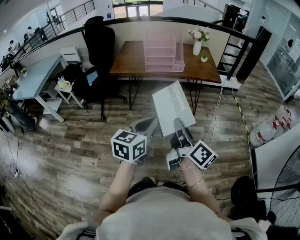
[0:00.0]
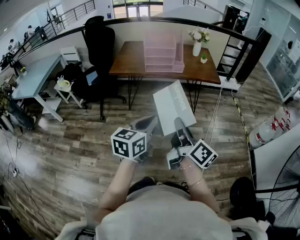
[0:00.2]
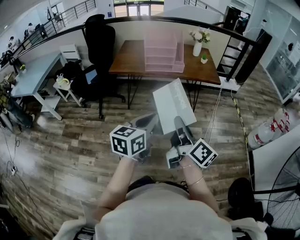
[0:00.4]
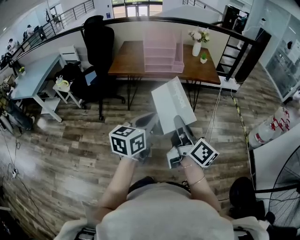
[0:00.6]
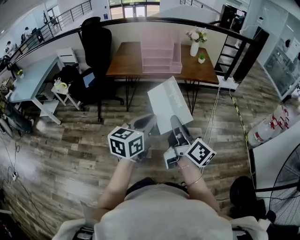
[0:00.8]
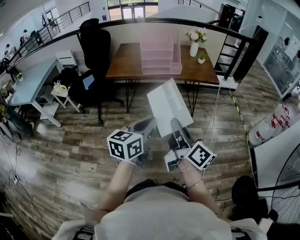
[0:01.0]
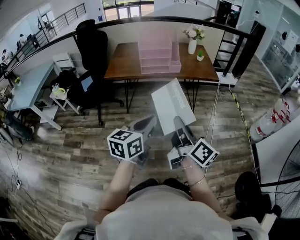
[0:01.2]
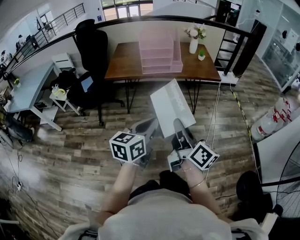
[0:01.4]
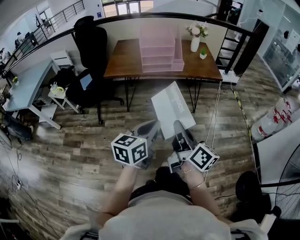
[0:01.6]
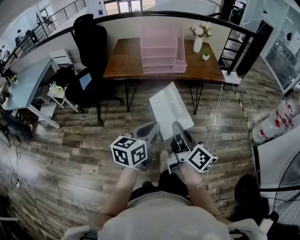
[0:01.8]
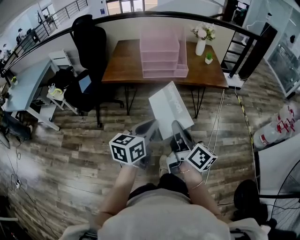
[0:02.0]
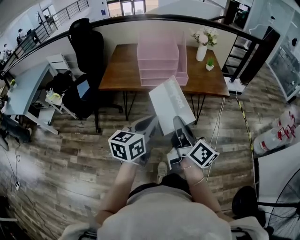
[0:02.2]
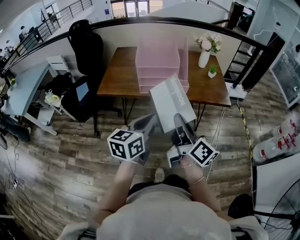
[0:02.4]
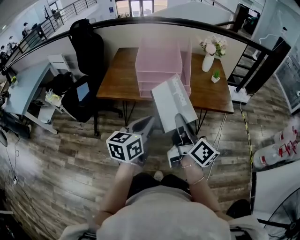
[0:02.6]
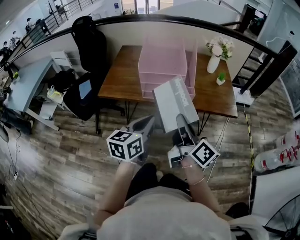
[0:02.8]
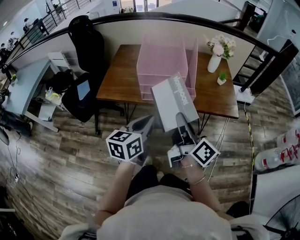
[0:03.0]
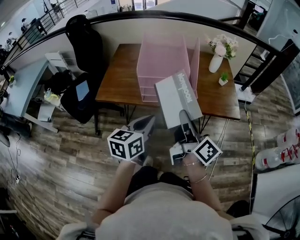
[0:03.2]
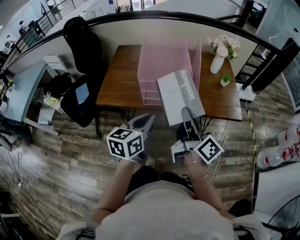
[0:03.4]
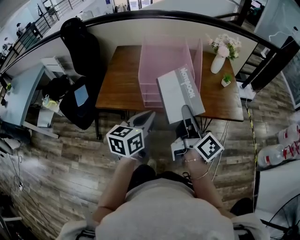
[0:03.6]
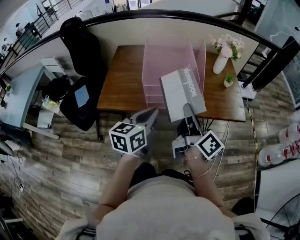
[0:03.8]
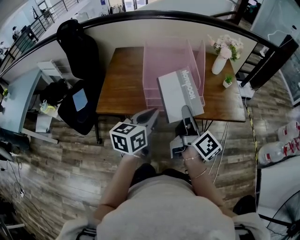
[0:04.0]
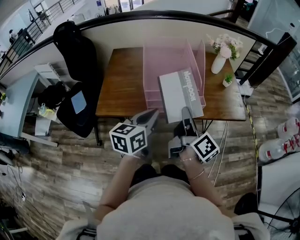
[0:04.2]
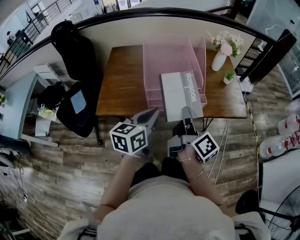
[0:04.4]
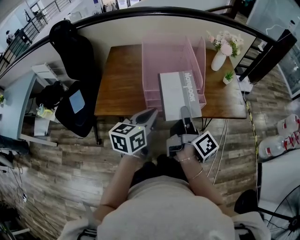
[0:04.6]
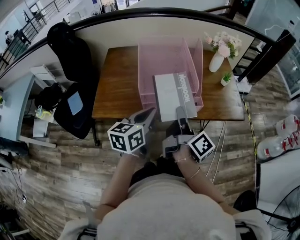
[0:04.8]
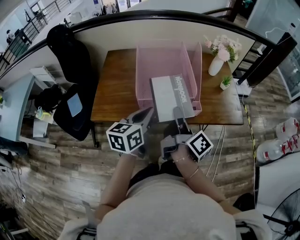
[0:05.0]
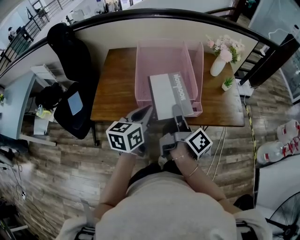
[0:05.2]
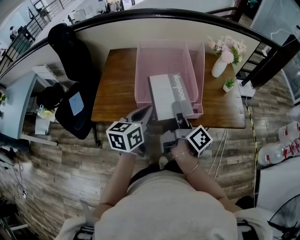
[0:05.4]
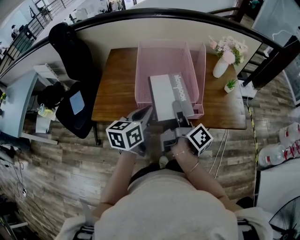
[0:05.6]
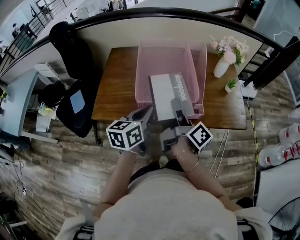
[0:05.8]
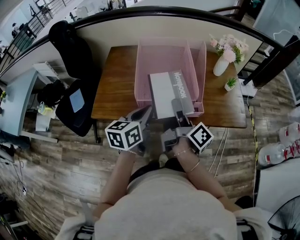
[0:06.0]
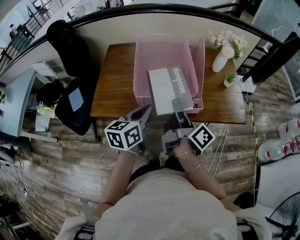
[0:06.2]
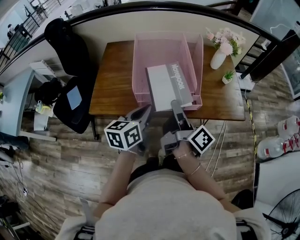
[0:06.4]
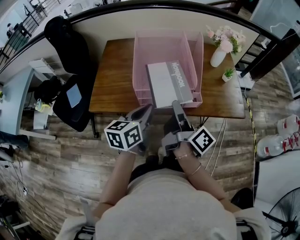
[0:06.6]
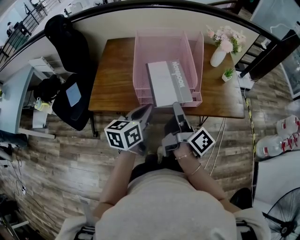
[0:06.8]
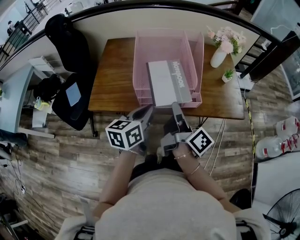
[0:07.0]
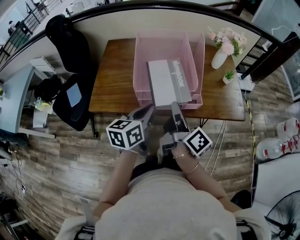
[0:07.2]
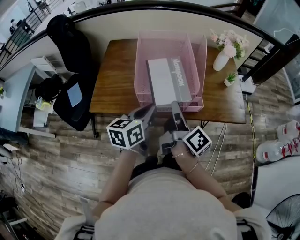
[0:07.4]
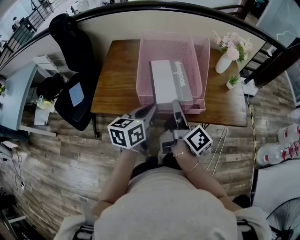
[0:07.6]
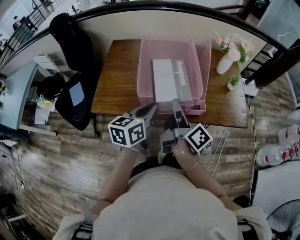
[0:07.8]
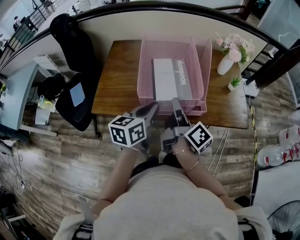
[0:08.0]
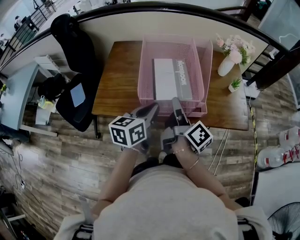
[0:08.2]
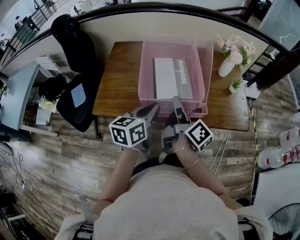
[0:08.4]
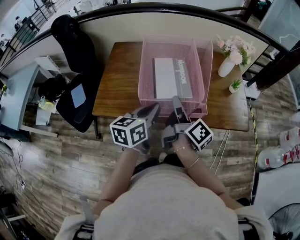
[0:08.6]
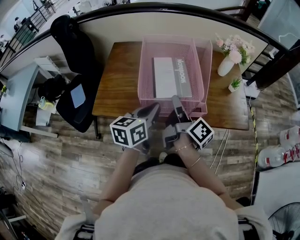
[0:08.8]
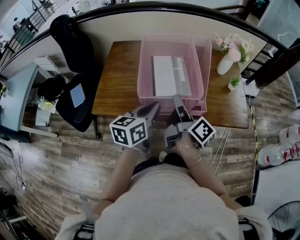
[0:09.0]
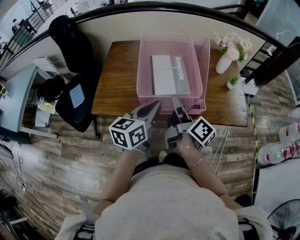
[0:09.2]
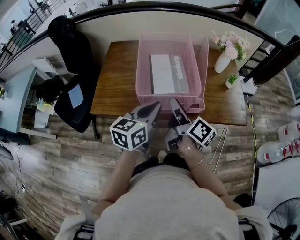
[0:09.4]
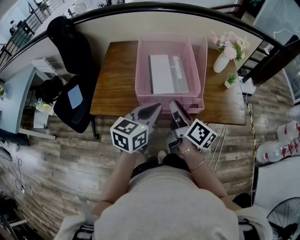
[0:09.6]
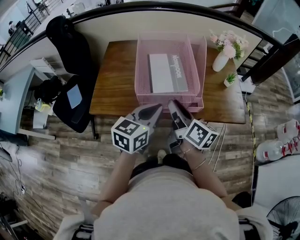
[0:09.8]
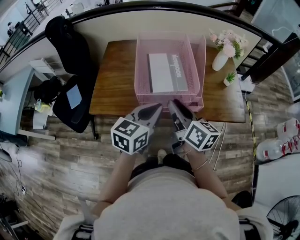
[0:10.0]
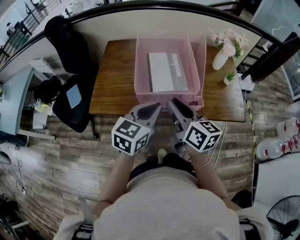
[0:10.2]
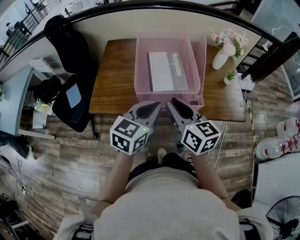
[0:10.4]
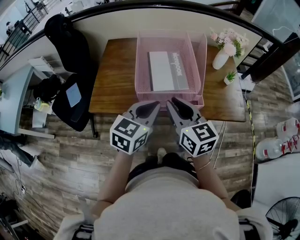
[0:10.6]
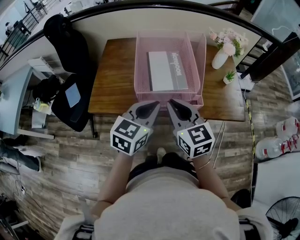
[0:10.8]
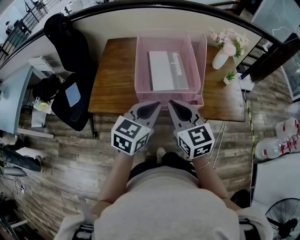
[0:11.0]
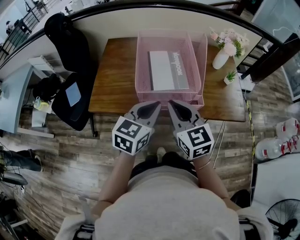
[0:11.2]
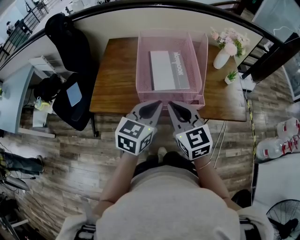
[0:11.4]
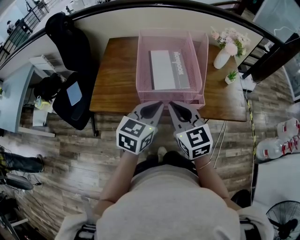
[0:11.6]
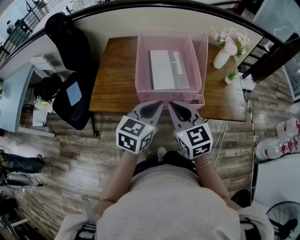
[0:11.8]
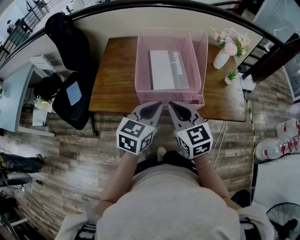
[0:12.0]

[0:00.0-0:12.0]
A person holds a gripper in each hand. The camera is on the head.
0:00.0 to 0:01.6: The left gripper moves some 5 cm, while the right gripper shifts by some 5 cm.
0:01.6 to 0:03.0: The two grippers go some 35 cm forward.
0:03.0 to 0:04.4: The two grippers go about 15 cm forward and to the left. The right gripper changes its angle by approximately 20 degrees.
0:04.4 to 0:06.0: The two grippers go roughly 5 cm forward. The right gripper opens up.
0:06.0 to 0:07.6: The right gripper closes.
0:07.6 to 0:09.0: The right gripper opens up.
0:09.0 to 0:10.4: The right gripper travels backward by about 5 cm, and rotates around the line of its fingers by approximately 50 degrees, counterclockwise from behind; the left gripper rotates roughly 20 degrees.
0:10.4 to 0:12.0: The right gripper swivels approximately 30 degrees.

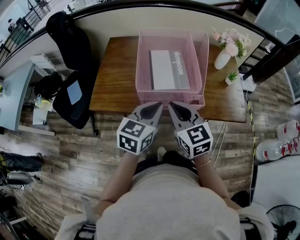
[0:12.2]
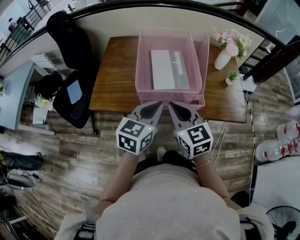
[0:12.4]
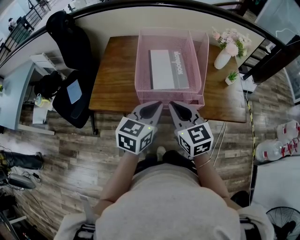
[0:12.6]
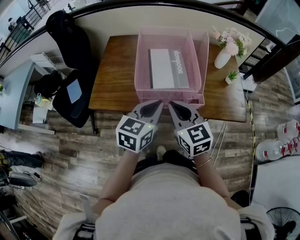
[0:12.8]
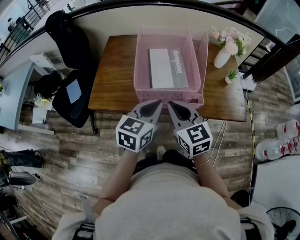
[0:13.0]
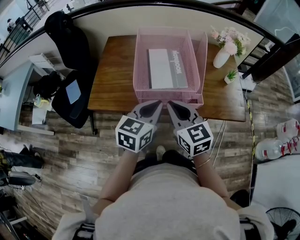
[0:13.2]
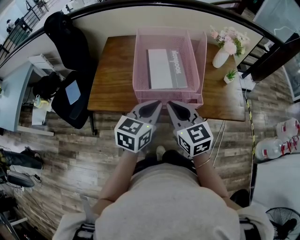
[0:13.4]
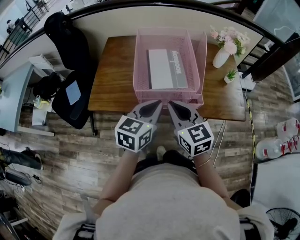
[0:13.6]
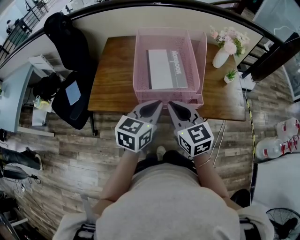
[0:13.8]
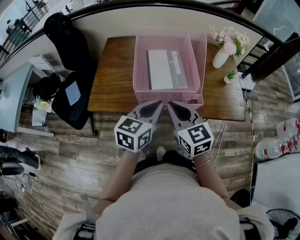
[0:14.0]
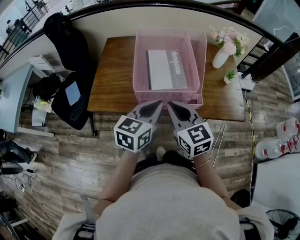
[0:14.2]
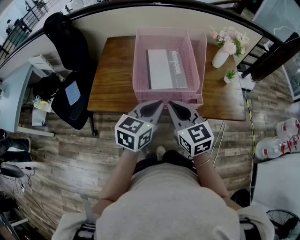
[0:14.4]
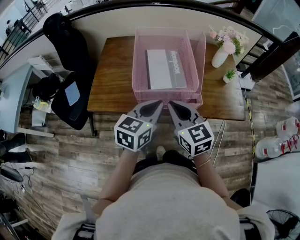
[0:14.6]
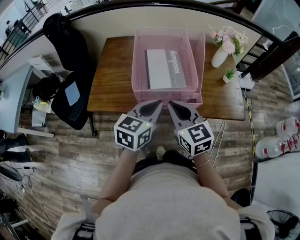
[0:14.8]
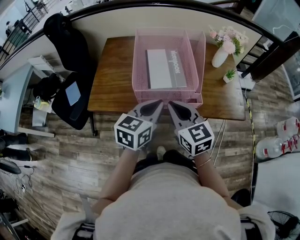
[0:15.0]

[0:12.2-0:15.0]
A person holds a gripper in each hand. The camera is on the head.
0:12.2 to 0:13.6: Both grippers stay about where they are.
0:13.6 to 0:15.0: The two grippers keep their place.

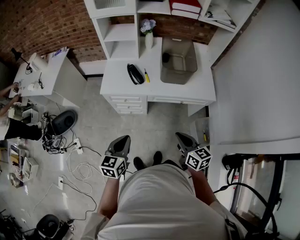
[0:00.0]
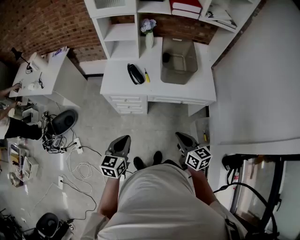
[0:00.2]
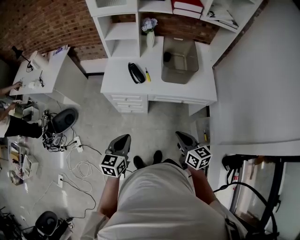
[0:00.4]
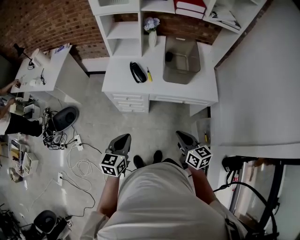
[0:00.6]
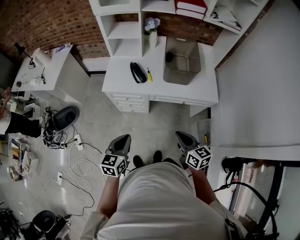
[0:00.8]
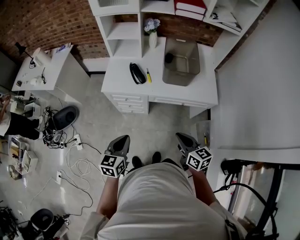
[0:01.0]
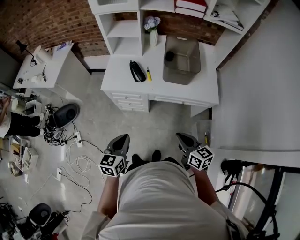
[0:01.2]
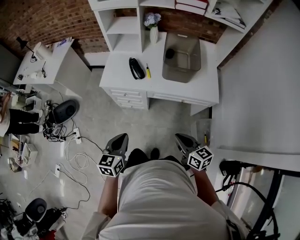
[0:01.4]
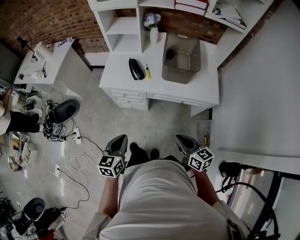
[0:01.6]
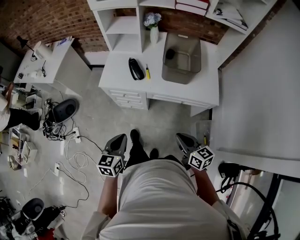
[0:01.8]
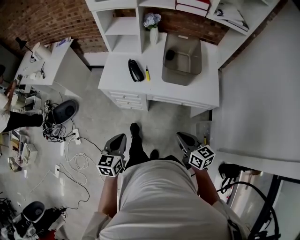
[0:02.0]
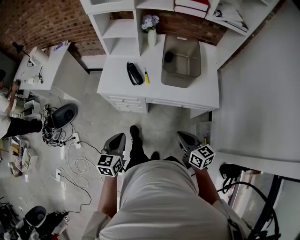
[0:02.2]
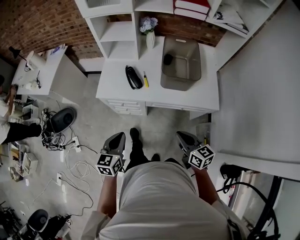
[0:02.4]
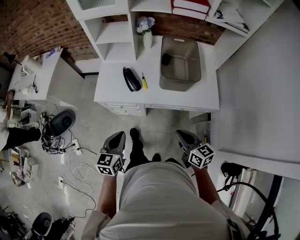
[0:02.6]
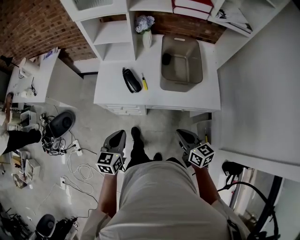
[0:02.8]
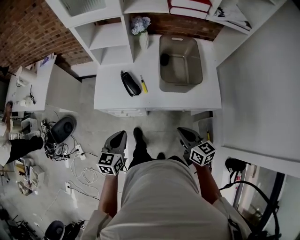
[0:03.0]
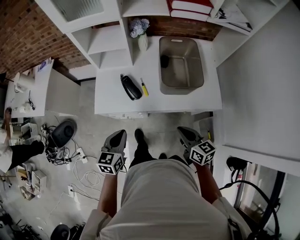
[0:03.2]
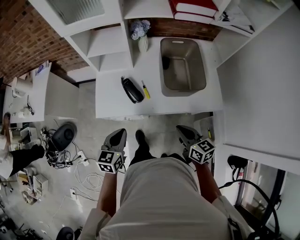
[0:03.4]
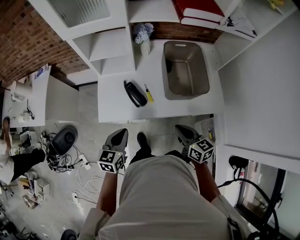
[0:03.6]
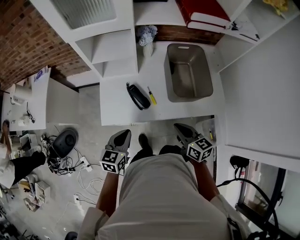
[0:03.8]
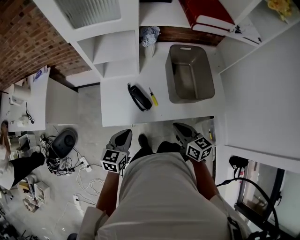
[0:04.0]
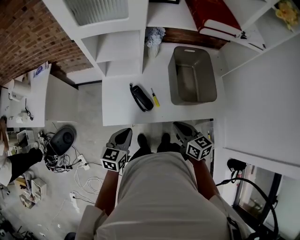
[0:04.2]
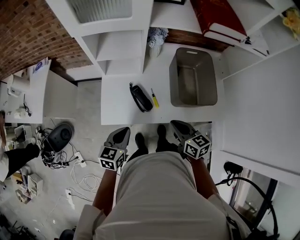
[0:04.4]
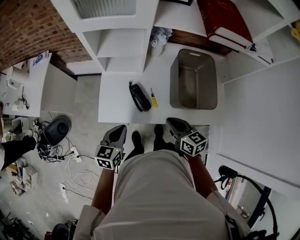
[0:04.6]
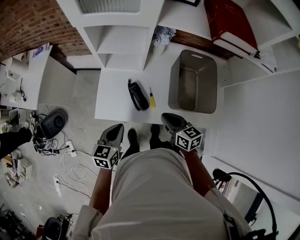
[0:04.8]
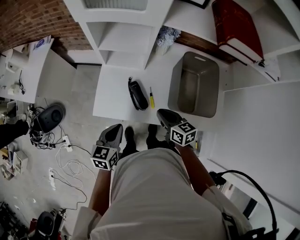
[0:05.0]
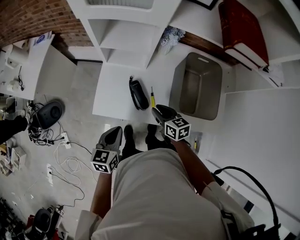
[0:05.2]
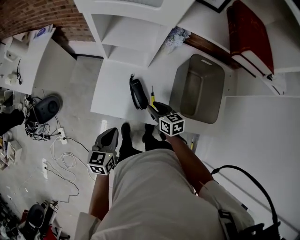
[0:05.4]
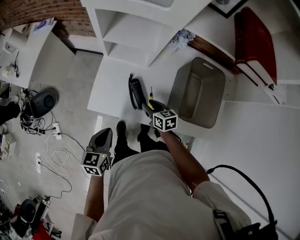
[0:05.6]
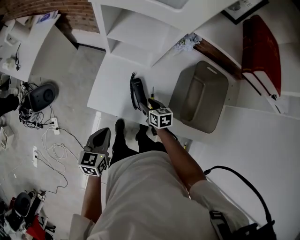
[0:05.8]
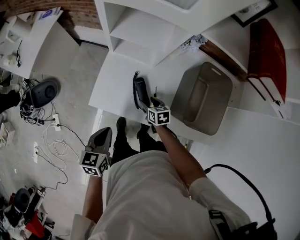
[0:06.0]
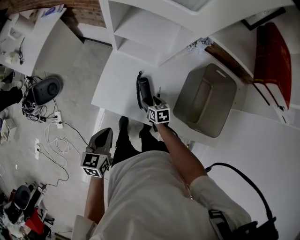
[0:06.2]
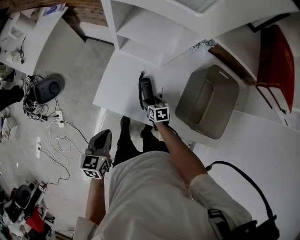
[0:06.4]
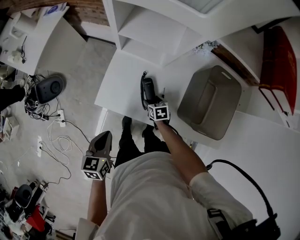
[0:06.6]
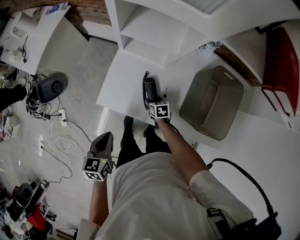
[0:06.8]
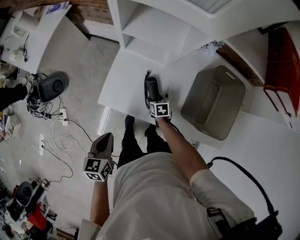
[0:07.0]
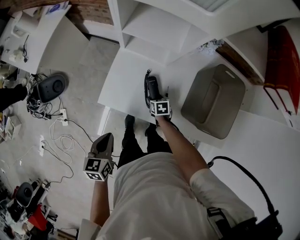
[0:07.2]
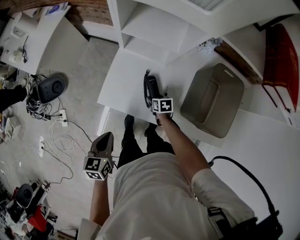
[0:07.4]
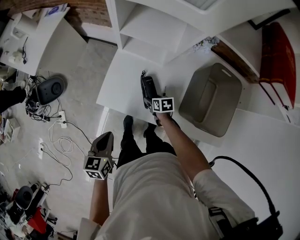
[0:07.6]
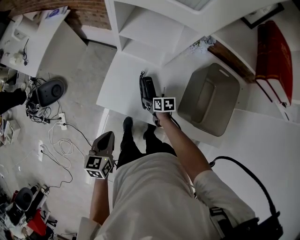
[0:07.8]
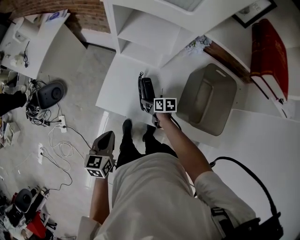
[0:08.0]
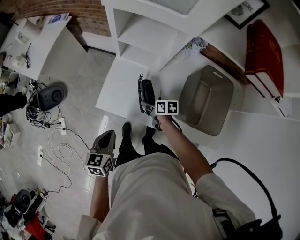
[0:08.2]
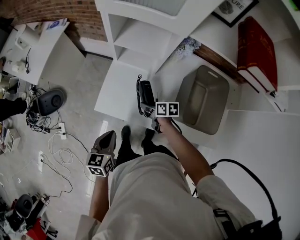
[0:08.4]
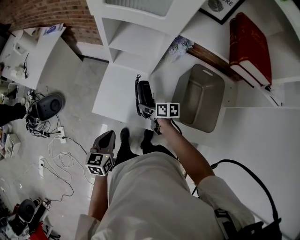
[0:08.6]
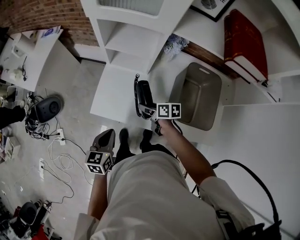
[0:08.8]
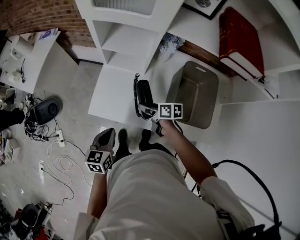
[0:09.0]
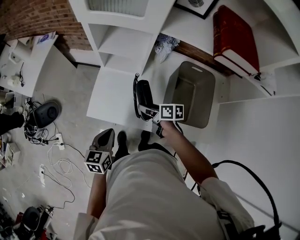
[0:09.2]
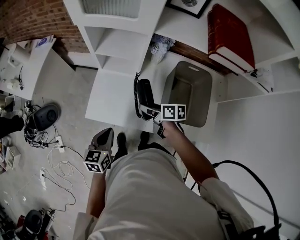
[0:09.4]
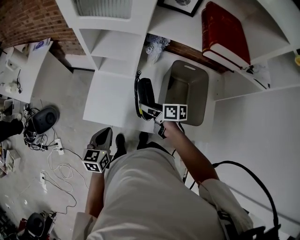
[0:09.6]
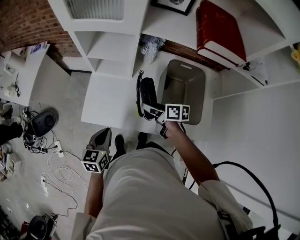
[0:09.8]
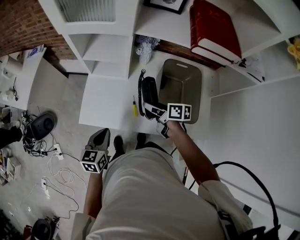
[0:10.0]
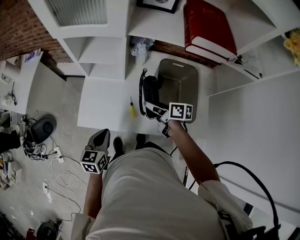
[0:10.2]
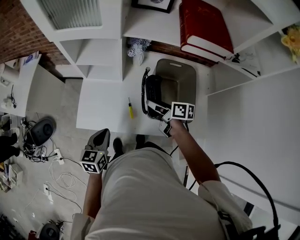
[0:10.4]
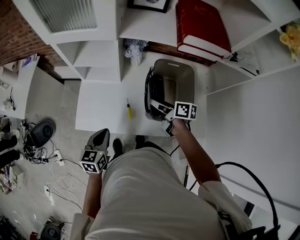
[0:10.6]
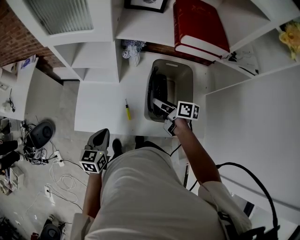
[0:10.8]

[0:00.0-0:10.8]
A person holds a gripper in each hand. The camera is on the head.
0:00.0 to 0:01.6: The right gripper moves to the right, some 5 cm.
0:01.6 to 0:03.0: Both grippers move forward, some 20 cm.
0:03.0 to 0:04.6: Both grippers move forward and to the left, approximately 20 cm.
0:04.6 to 0:06.2: The right gripper is displaced downward and forward by about 30 cm, rotates some 30 degrees, and opens up, while the left gripper heads to the left, covering approximately 5 cm, and changes its angle by approximately 20 degrees.
0:06.2 to 0:07.8: The grippers move only a little.
0:07.8 to 0:09.2: The left gripper shifts about 10 cm to the right. Meanwhile the right gripper travels upward by some 20 cm, and turns by approximately 20 degrees.
0:09.2 to 0:10.8: The right gripper travels to the right by roughly 20 cm, and swivels approximately 20 degrees. The left gripper travels to the right by about 10 cm.
